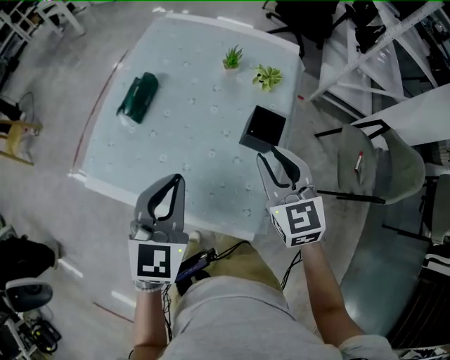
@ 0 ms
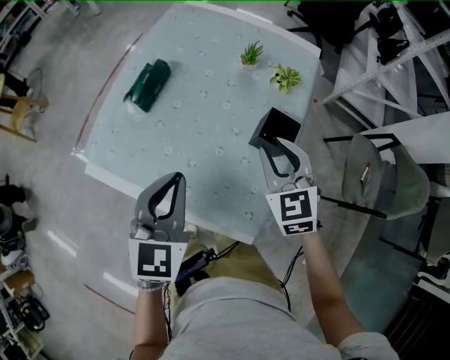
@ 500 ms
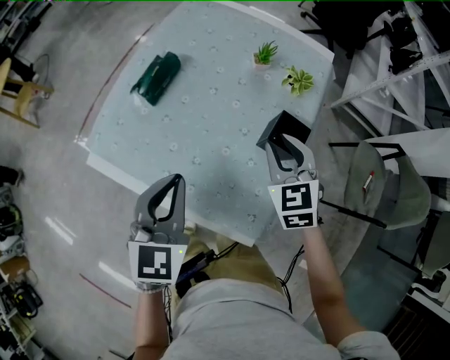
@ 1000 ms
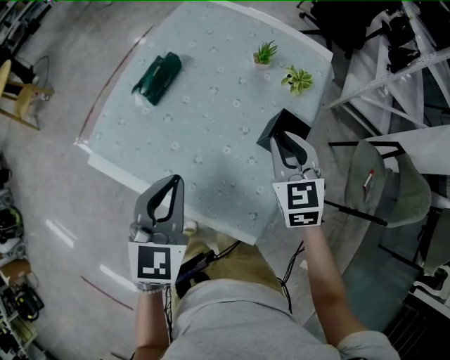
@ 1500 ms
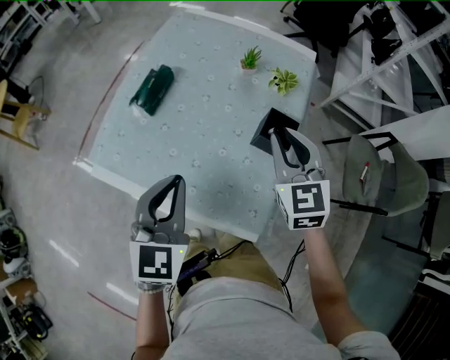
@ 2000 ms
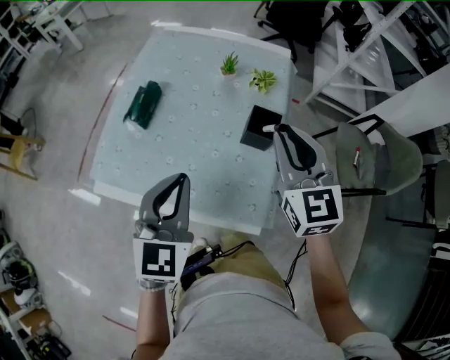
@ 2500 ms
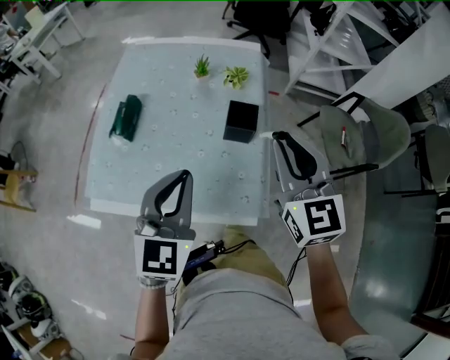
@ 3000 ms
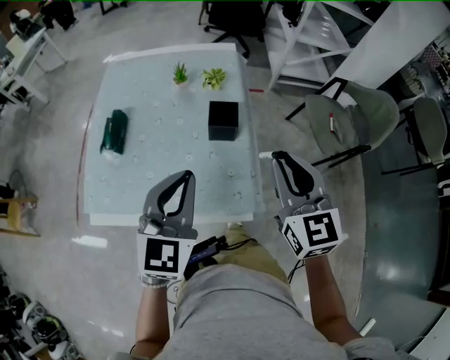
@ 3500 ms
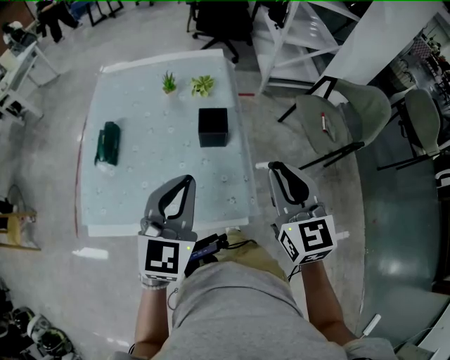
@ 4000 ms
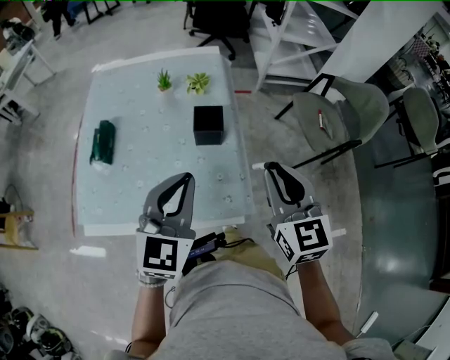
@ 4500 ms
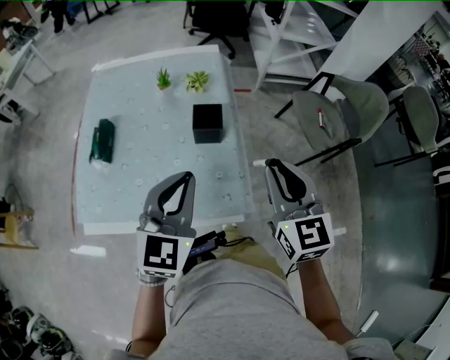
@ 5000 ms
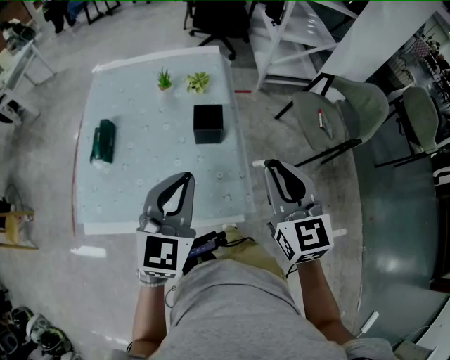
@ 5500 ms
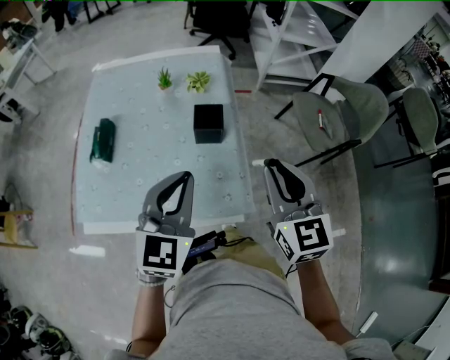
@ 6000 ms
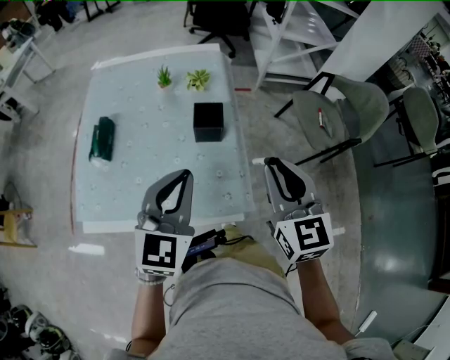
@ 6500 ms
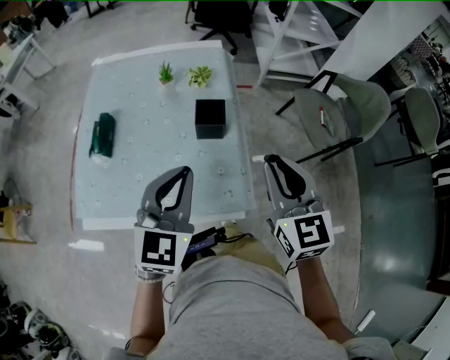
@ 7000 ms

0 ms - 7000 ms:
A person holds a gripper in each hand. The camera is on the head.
2000 ms - 3500 ms: The right gripper heads backward, to the right and upward, covering roughly 20 cm, and changes its angle by roughly 30 degrees; the left gripper shifts some 10 cm to the right and upward, and swivels about 30 degrees.
3500 ms - 5000 ms: The grippers make only small movements.
5000 ms - 7000 ms: Both grippers stay put.

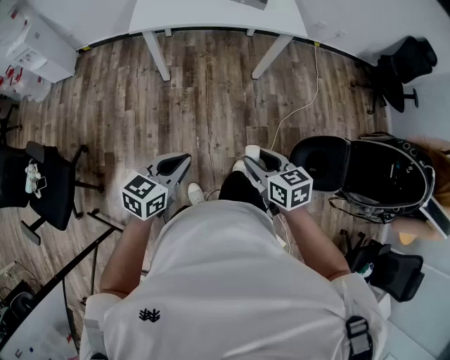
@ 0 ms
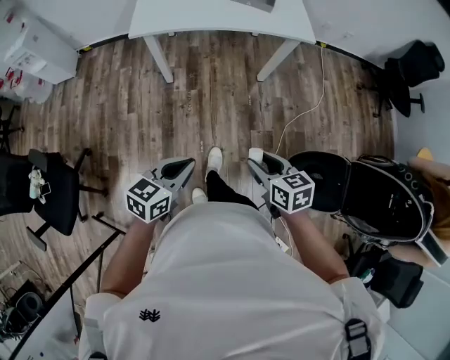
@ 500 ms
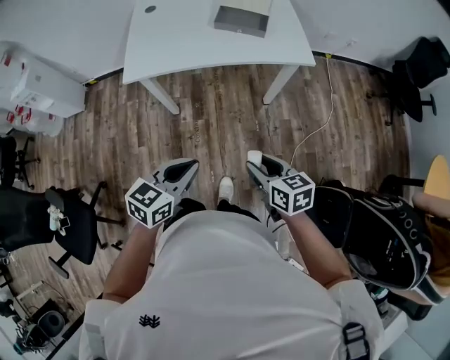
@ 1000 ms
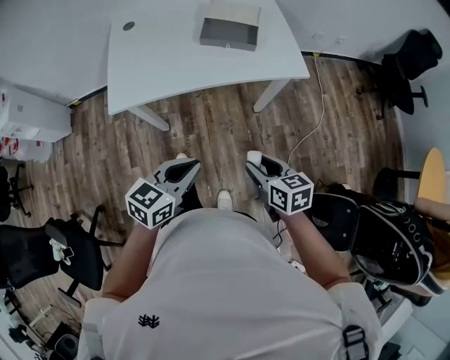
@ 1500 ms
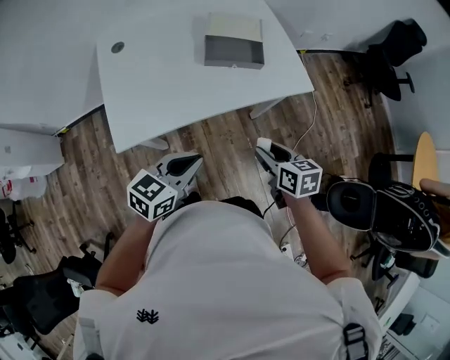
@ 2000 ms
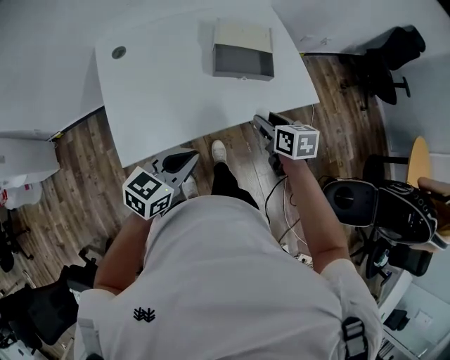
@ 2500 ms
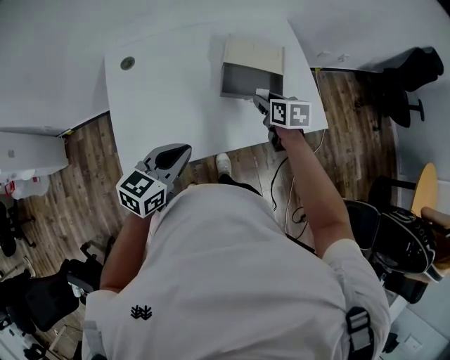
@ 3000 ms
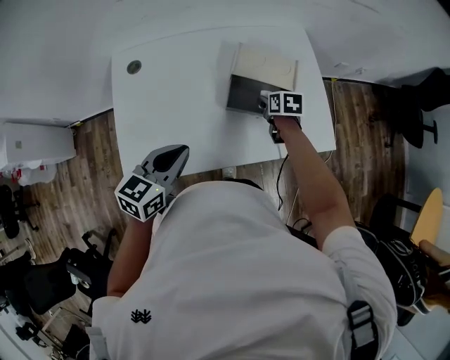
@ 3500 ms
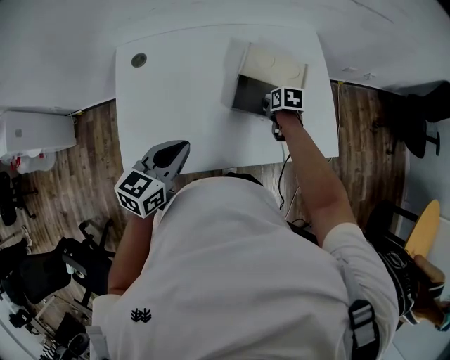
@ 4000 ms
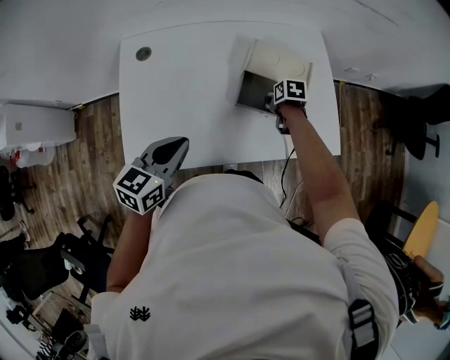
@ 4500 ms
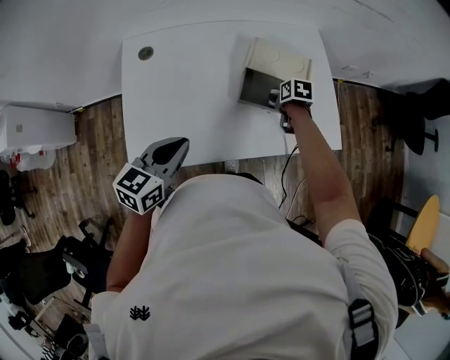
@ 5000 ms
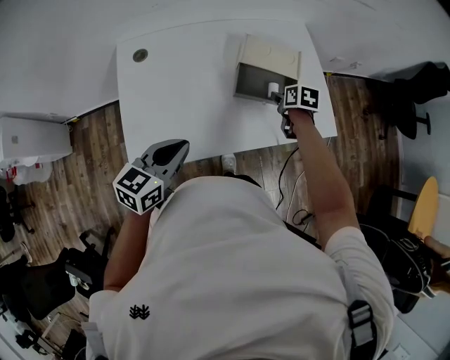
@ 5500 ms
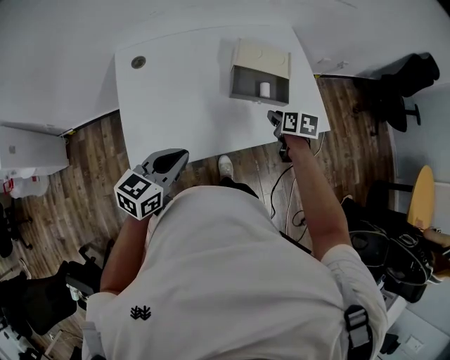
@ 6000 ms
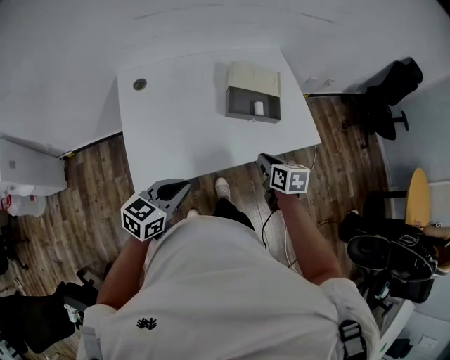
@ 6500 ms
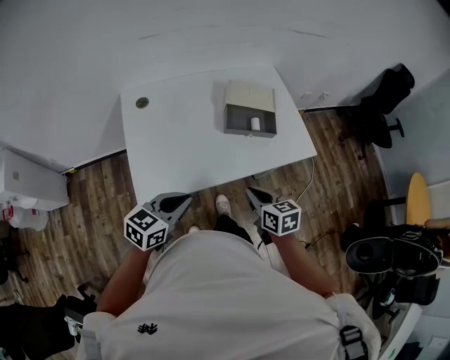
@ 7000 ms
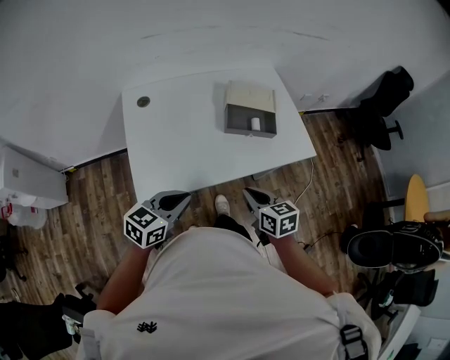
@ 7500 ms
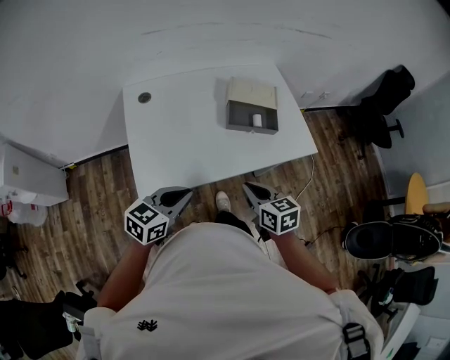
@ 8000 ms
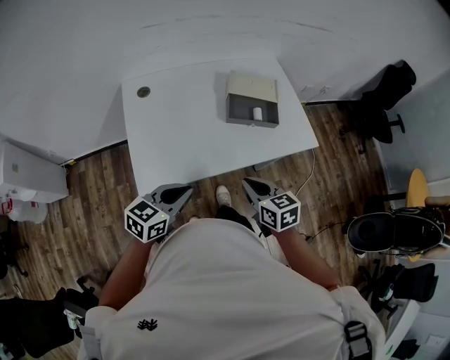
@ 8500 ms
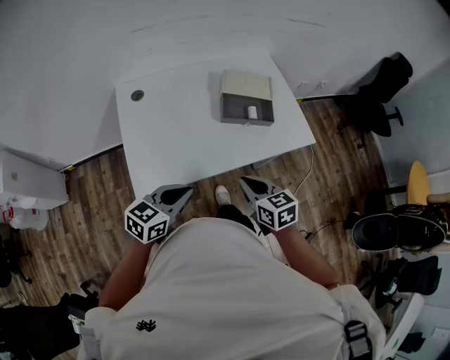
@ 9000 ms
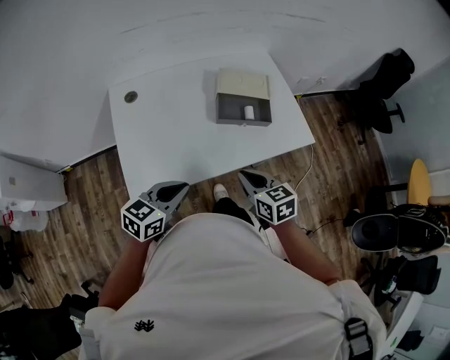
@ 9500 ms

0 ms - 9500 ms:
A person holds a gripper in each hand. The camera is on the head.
0 ms - 2000 ms: The two grippers go some 40 cm forward. The right gripper swivels roughly 20 degrees; the left gripper rotates approximately 20 degrees.
2000 ms - 4000 ms: The right gripper shifts approximately 40 cm forward, and swivels roughly 20 degrees, while the left gripper is displaced forward and to the left by roughly 20 cm, and turns by approximately 20 degrees.
4000 ms - 5500 ms: The right gripper travels upward by some 5 cm, while the left gripper travels backward by roughly 5 cm.
5500 ms - 7500 ms: The left gripper travels backward by some 10 cm. The right gripper heads backward, covering roughly 30 cm, turns by roughly 30 degrees, and closes up.
7500 ms - 9500 ms: The grippers make only small movements.

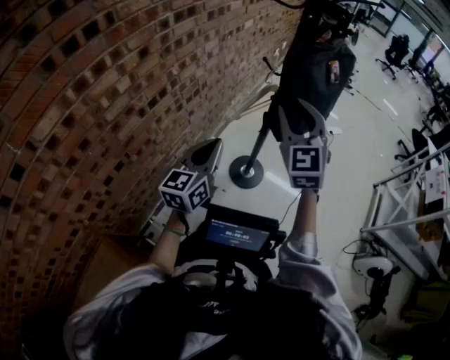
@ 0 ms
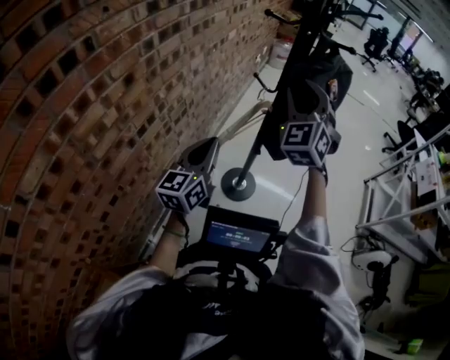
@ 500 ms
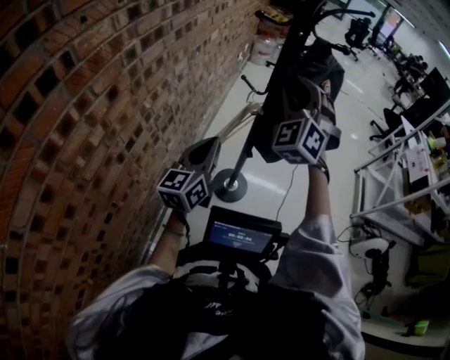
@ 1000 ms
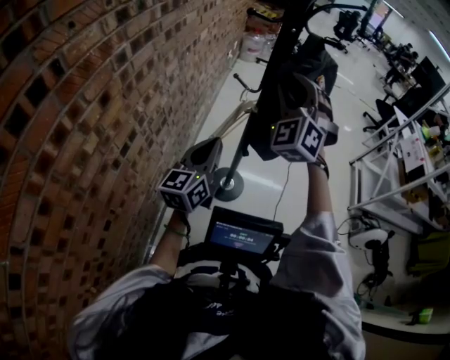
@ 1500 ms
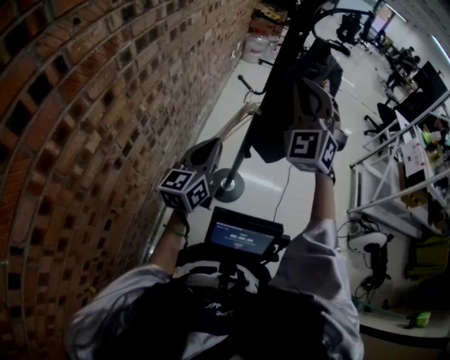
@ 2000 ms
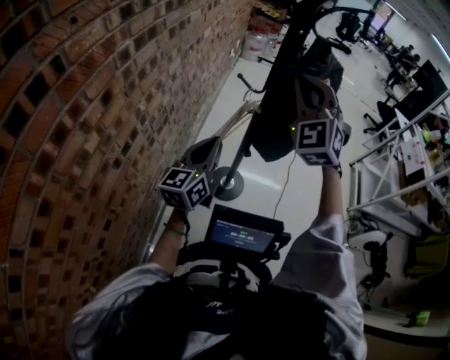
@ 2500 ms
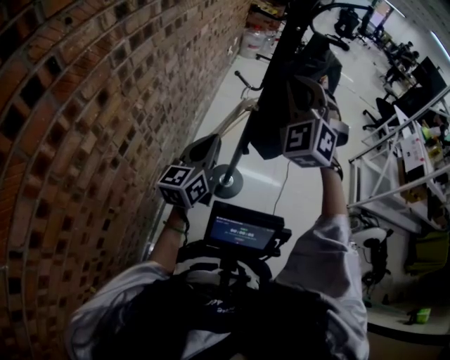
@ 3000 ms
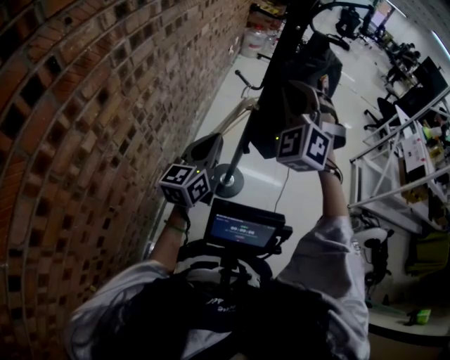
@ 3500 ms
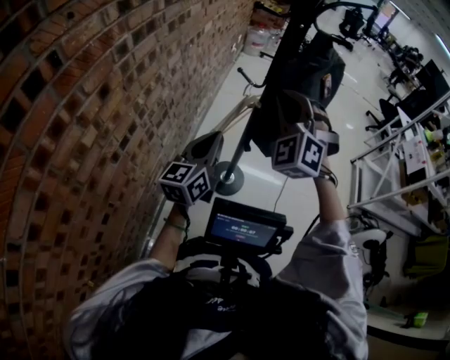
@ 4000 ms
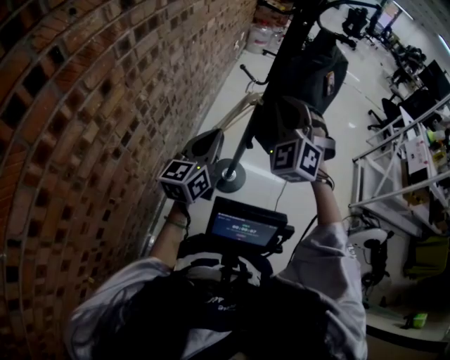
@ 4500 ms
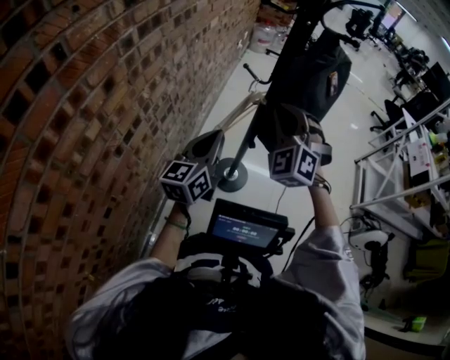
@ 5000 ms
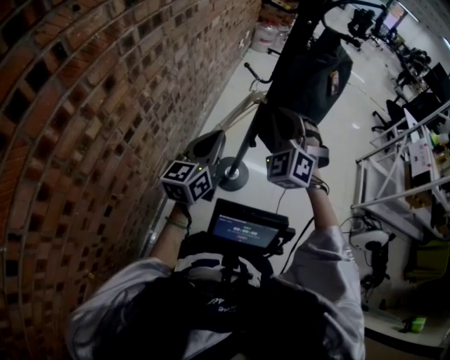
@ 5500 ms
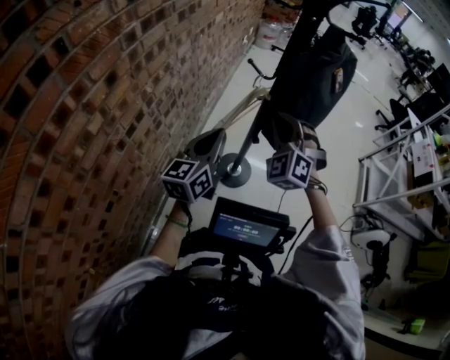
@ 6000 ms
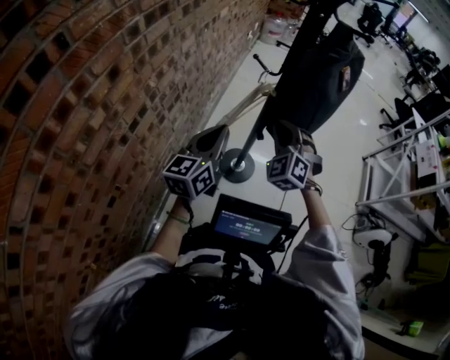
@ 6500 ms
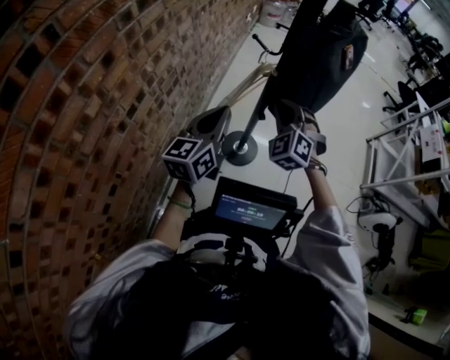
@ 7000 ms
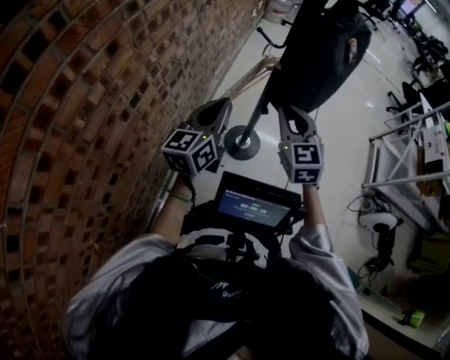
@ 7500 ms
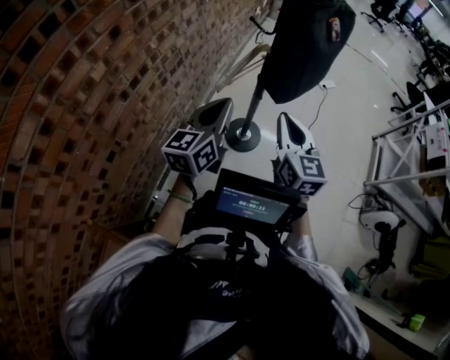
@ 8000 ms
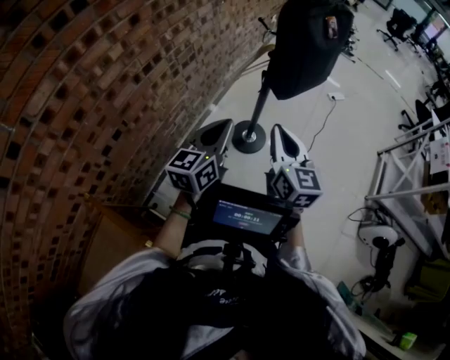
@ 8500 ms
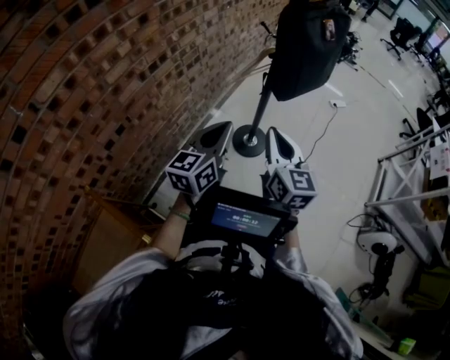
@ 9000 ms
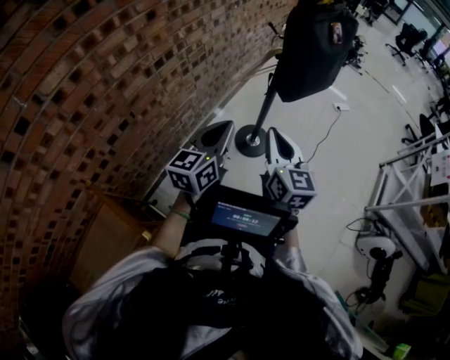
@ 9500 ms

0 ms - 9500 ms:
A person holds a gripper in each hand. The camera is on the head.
0 ms - 2000 ms: The right gripper goes roughly 15 cm forward and upward, swivels some 30 degrees, and closes up. Meanwhile the left gripper is displaced forward by about 15 cm.
2000 ms - 4000 ms: The right gripper goes roughly 5 cm downward.
4000 ms - 5500 ms: The right gripper travels downward by roughly 10 cm.
5500 ms - 7500 ms: The right gripper shifts about 10 cm downward and backward, and rolls clockwise, seen from behind, by some 50 degrees.
7500 ms - 9500 ms: The grippers both shift backward by approximately 20 cm. The right gripper turns by approximately 30 degrees.

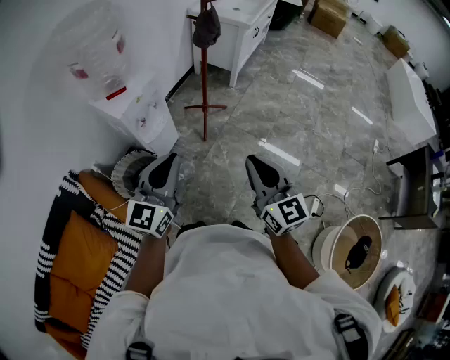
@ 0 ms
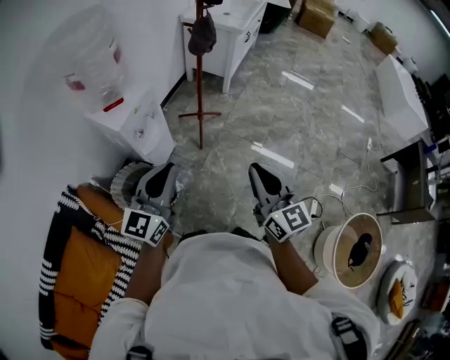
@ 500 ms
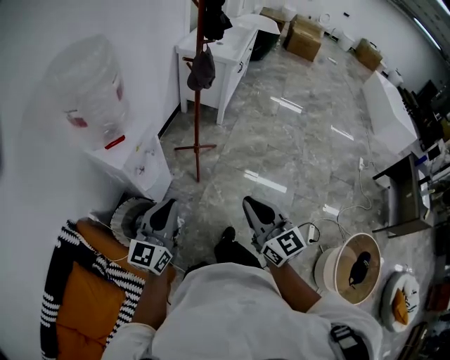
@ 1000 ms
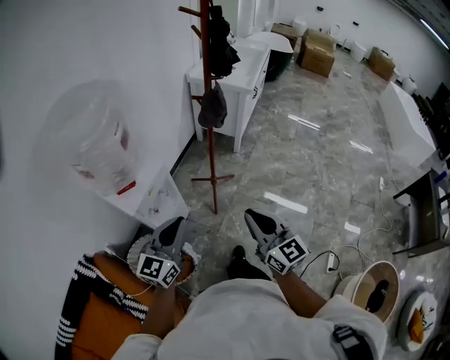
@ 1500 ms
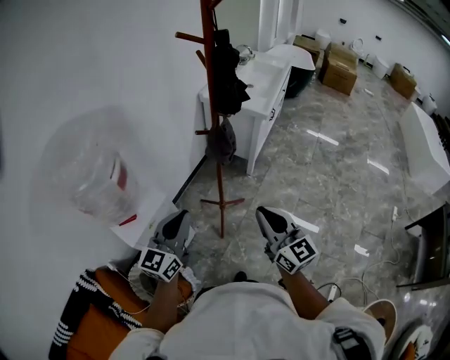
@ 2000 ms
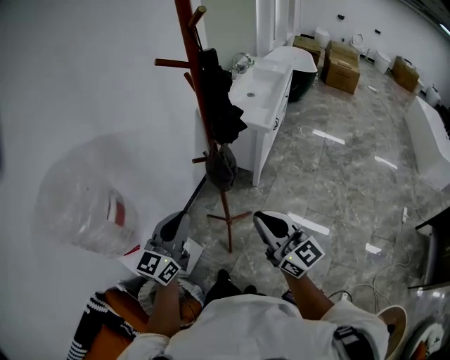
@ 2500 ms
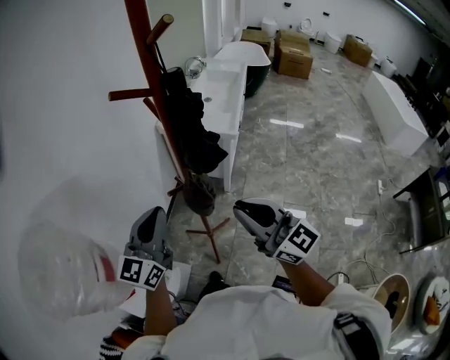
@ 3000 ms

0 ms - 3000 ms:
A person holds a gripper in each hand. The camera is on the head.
0 ms - 1500 ms: The two grippers go roughly 20 cm forward.
1500 ms - 3000 ms: The left gripper goes roughly 40 cm forward. The right gripper goes approximately 40 cm forward and upward.
